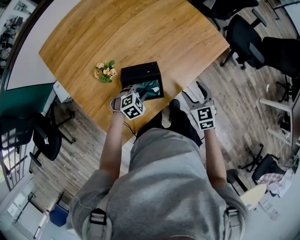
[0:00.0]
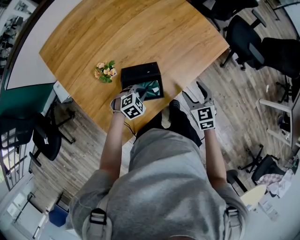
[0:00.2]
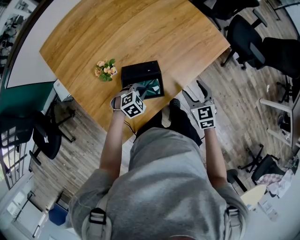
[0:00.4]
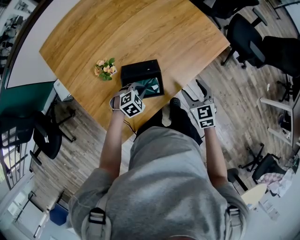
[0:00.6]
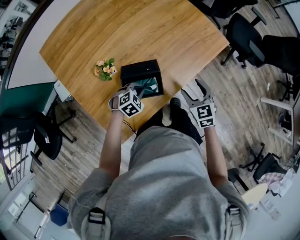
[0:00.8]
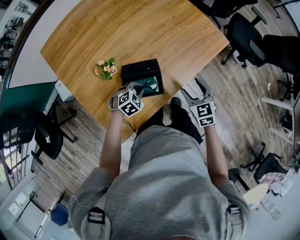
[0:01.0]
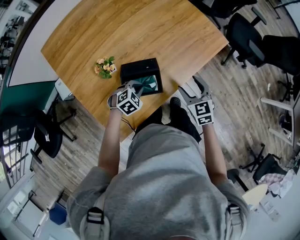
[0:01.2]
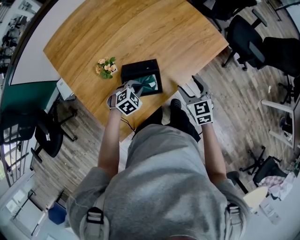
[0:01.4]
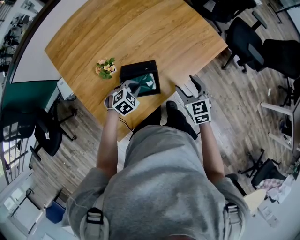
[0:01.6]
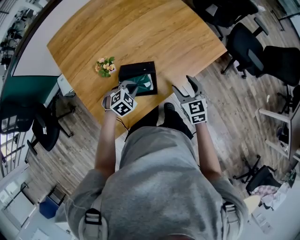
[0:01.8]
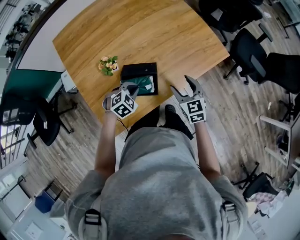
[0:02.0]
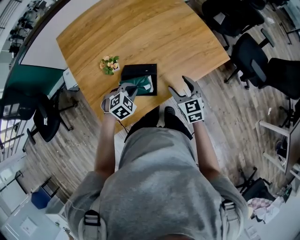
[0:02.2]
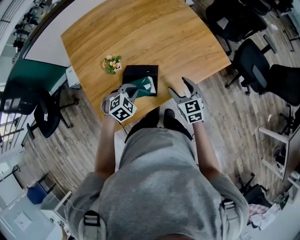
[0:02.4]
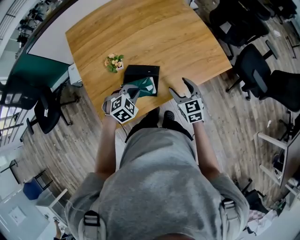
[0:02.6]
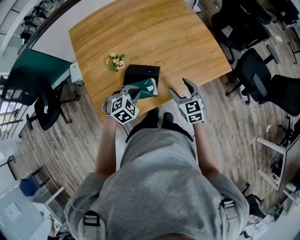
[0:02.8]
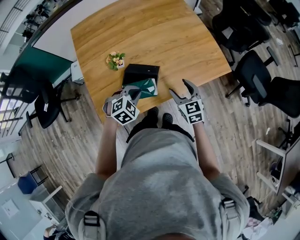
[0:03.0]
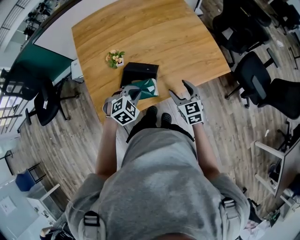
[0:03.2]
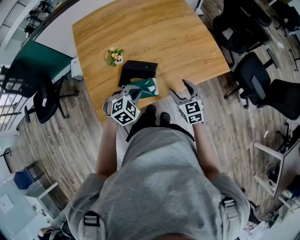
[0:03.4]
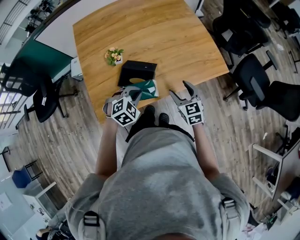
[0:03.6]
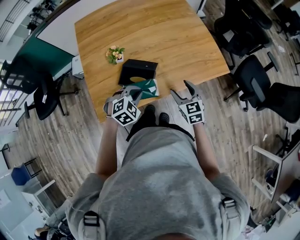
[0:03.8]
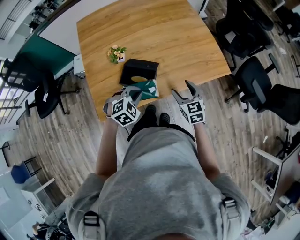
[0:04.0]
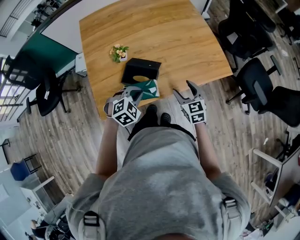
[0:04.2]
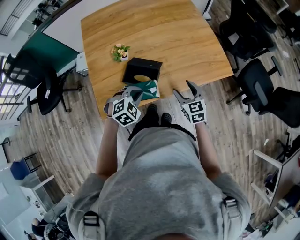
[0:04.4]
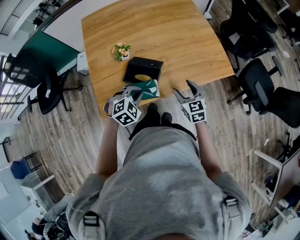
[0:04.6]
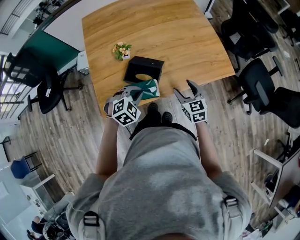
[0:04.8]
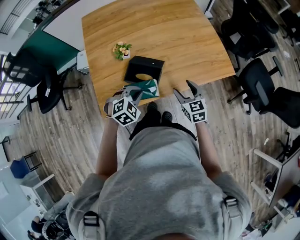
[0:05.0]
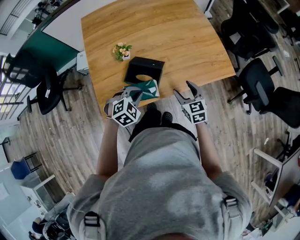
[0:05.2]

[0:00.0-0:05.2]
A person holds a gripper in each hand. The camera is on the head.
0.0 to 1.8 s: The left gripper heads upward, covering about 5 cm.
1.8 to 3.4 s: The left gripper moves upward, backward and to the right, about 10 cm.
3.4 to 5.2 s: The grippers make only small movements.

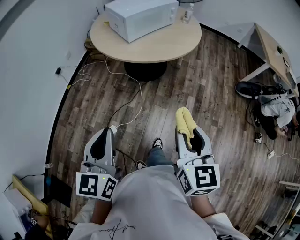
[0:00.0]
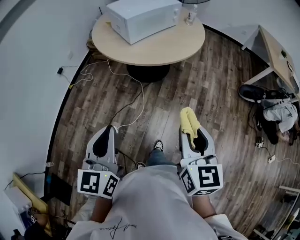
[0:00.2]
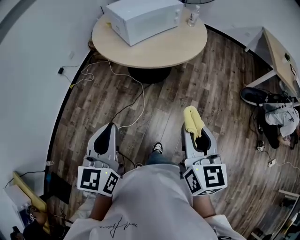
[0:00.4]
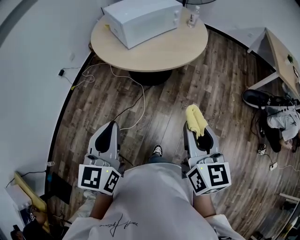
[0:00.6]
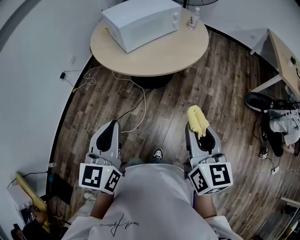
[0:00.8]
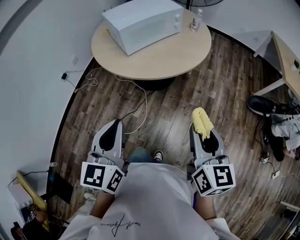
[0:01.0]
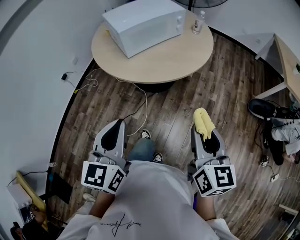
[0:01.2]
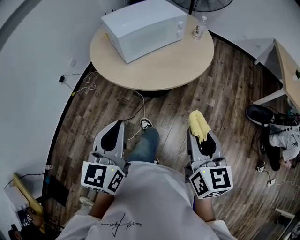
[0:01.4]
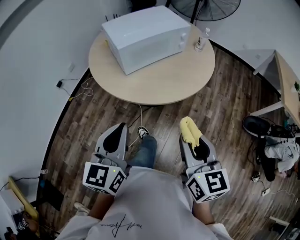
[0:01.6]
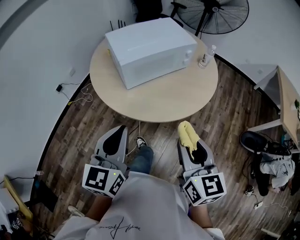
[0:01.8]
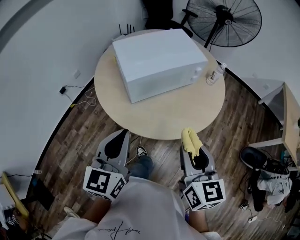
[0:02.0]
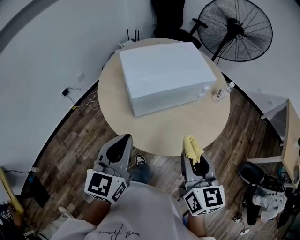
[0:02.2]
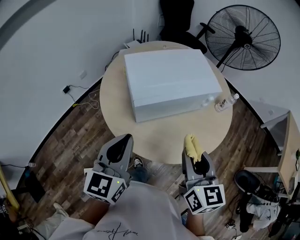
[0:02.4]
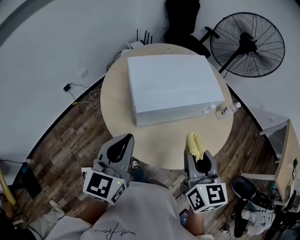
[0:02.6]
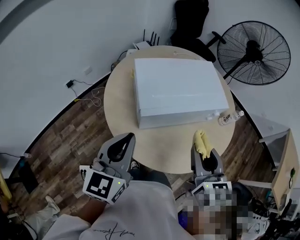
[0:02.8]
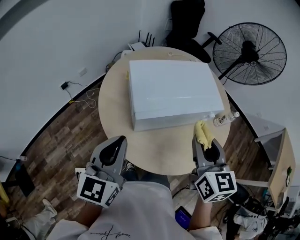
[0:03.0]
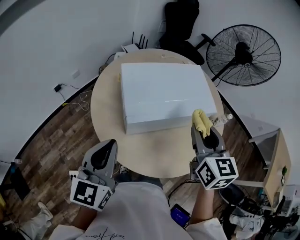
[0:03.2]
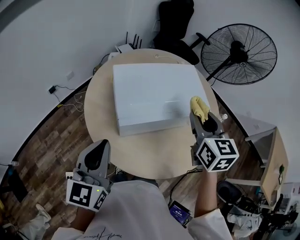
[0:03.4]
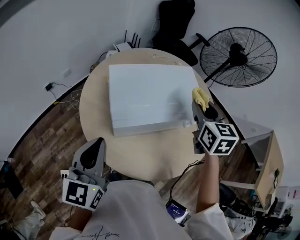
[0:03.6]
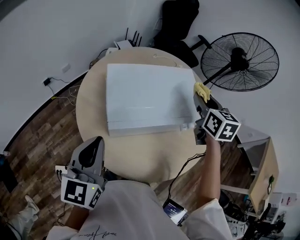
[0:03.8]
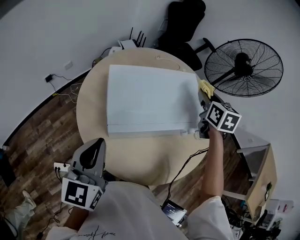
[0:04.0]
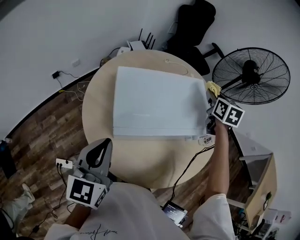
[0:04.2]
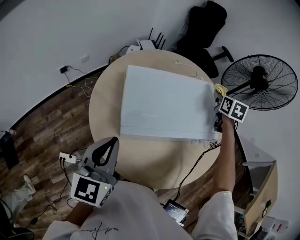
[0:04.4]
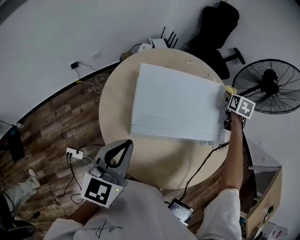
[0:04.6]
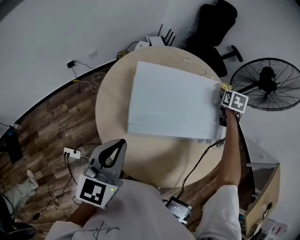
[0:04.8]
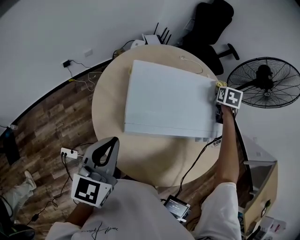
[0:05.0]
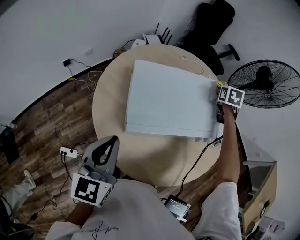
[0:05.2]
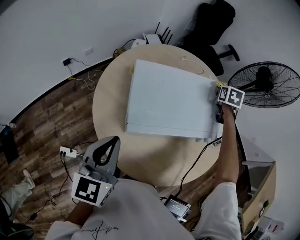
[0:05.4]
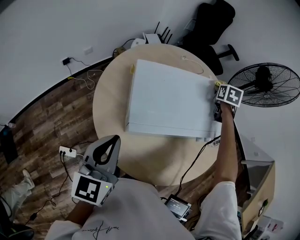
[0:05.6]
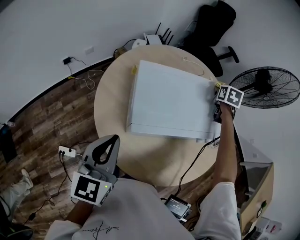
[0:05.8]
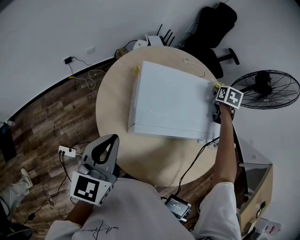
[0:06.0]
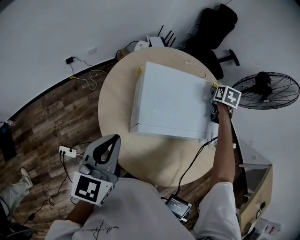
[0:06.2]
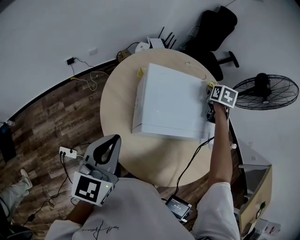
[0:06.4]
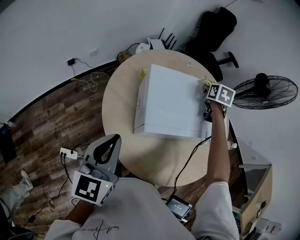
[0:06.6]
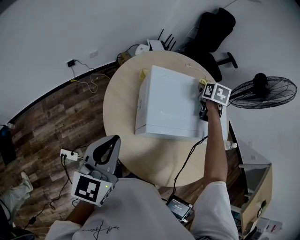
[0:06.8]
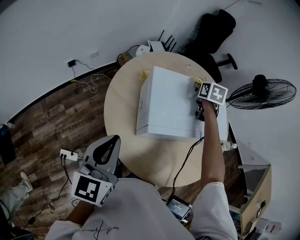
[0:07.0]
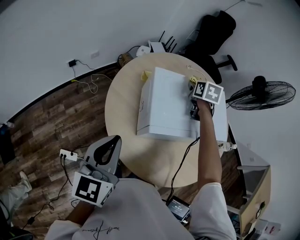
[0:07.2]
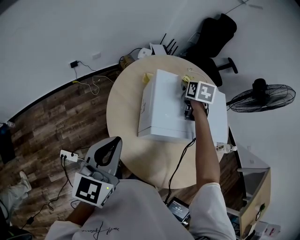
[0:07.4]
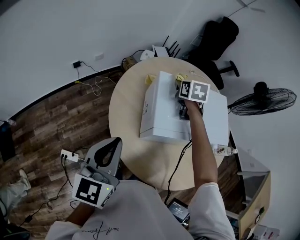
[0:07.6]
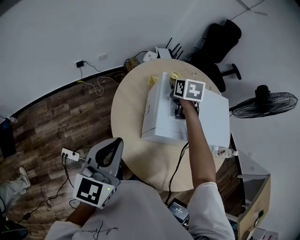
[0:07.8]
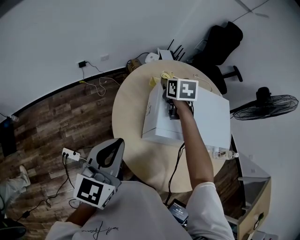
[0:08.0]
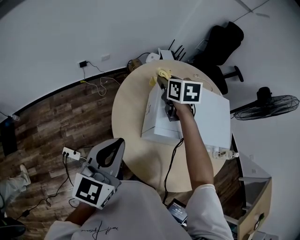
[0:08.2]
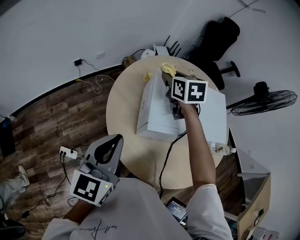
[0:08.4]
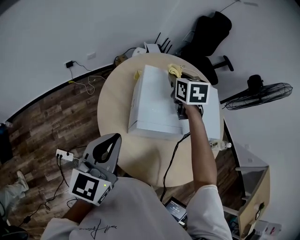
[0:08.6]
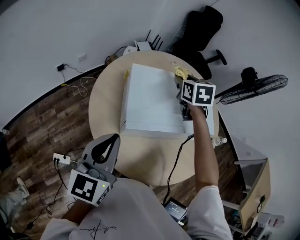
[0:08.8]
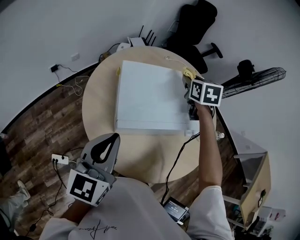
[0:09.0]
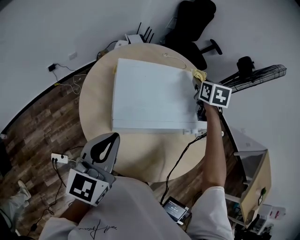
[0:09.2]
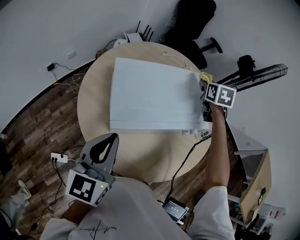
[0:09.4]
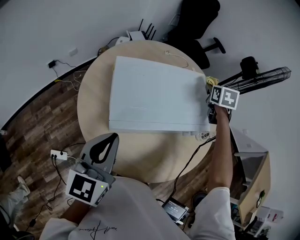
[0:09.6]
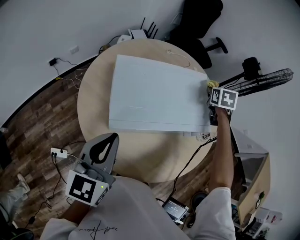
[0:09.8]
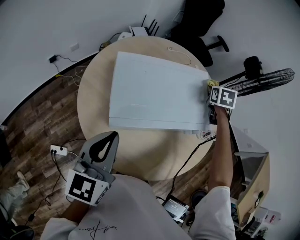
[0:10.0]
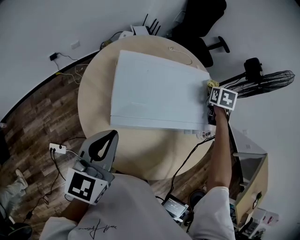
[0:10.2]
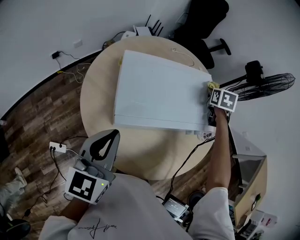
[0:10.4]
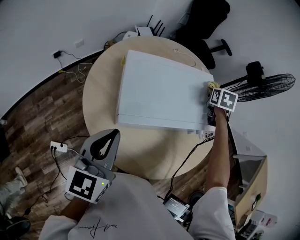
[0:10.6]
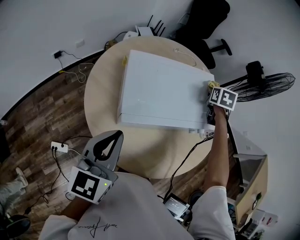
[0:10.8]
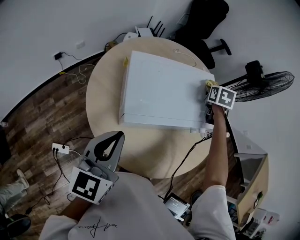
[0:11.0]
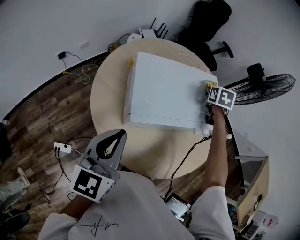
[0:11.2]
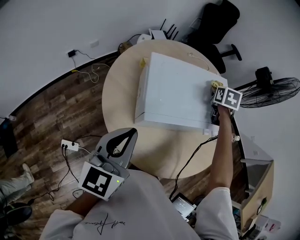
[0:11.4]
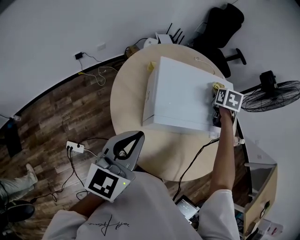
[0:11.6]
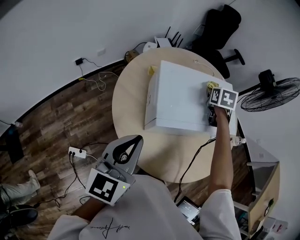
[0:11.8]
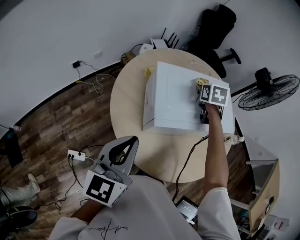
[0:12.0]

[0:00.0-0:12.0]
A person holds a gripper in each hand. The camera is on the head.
0.0 to 1.6 s: The left gripper travels forward and to the right by some 30 cm, while the right gripper shifts approximately 30 cm forward.
1.6 to 3.0 s: Both grippers move forward, some 35 cm.
3.0 to 4.4 s: The right gripper travels forward by about 40 cm, and rotates approximately 20 degrees. The left gripper moves forward, approximately 5 cm.
4.4 to 6.0 s: Both grippers travel together to the left, approximately 5 cm.
6.0 to 7.6 s: The right gripper is displaced to the left by roughly 30 cm, while the left gripper goes some 5 cm to the left.
7.6 to 9.0 s: The two grippers go about 15 cm to the right.
9.0 to 10.4 s: The right gripper moves to the right and downward, some 15 cm.
10.4 to 12.0 s: The left gripper shifts roughly 10 cm to the left and backward. Meanwhile the right gripper moves to the left and backward, about 20 cm.

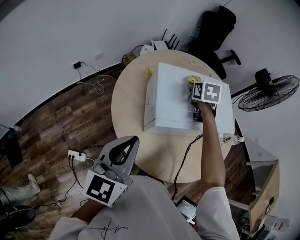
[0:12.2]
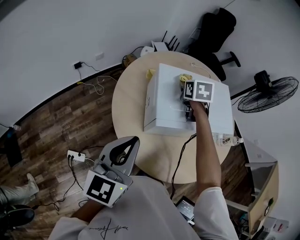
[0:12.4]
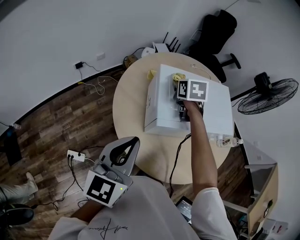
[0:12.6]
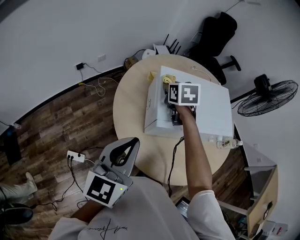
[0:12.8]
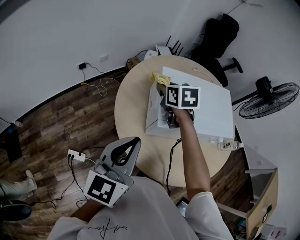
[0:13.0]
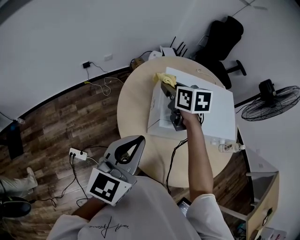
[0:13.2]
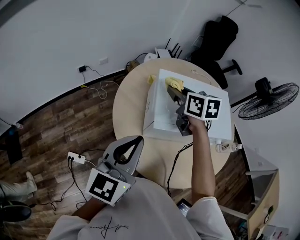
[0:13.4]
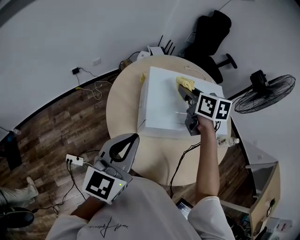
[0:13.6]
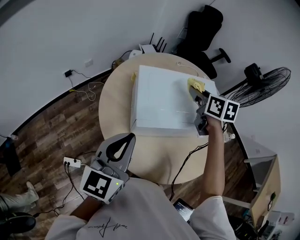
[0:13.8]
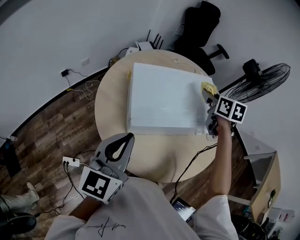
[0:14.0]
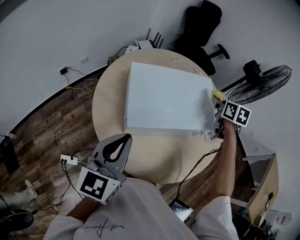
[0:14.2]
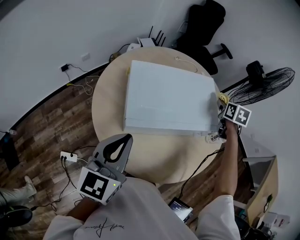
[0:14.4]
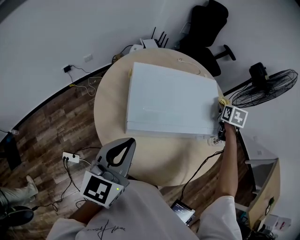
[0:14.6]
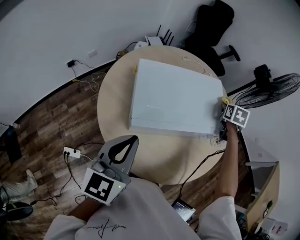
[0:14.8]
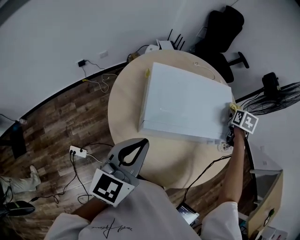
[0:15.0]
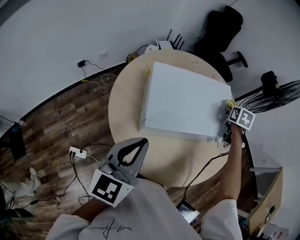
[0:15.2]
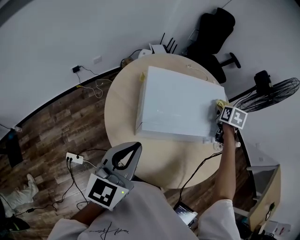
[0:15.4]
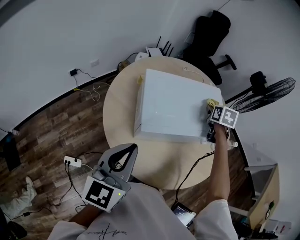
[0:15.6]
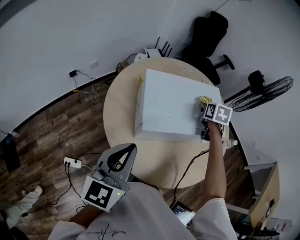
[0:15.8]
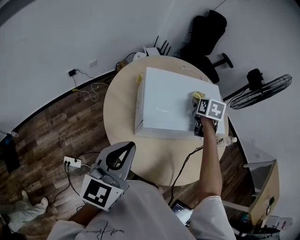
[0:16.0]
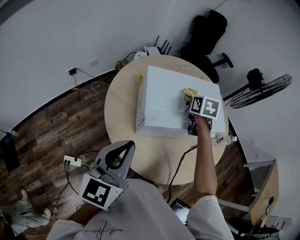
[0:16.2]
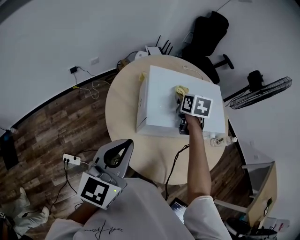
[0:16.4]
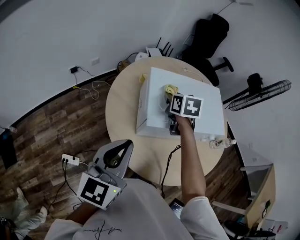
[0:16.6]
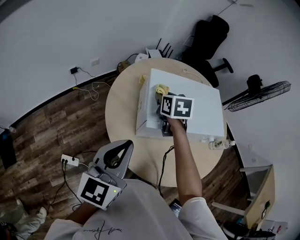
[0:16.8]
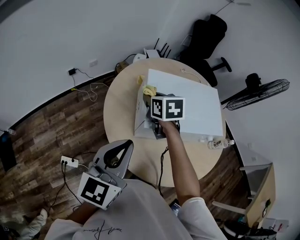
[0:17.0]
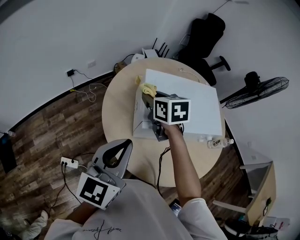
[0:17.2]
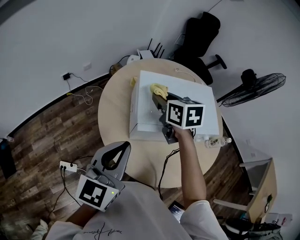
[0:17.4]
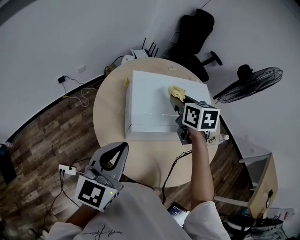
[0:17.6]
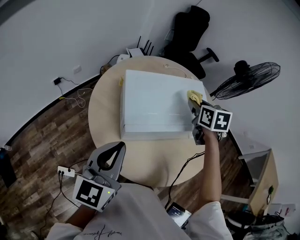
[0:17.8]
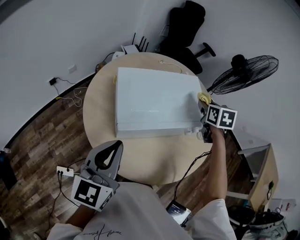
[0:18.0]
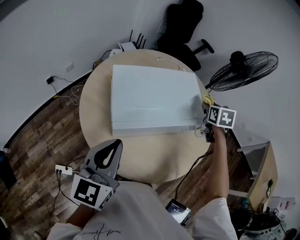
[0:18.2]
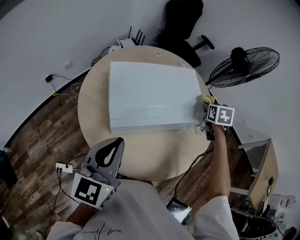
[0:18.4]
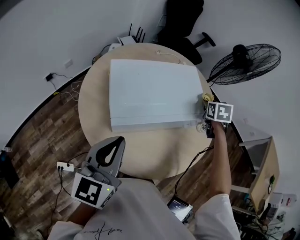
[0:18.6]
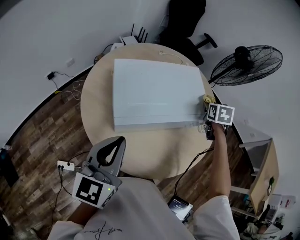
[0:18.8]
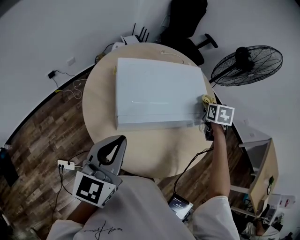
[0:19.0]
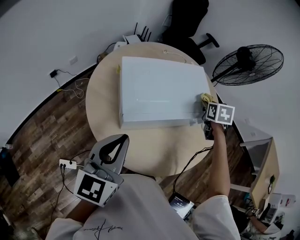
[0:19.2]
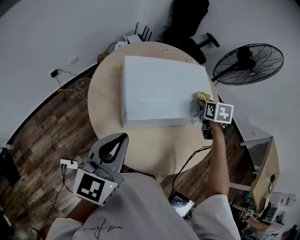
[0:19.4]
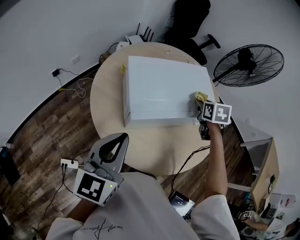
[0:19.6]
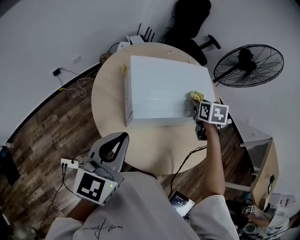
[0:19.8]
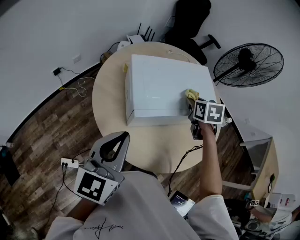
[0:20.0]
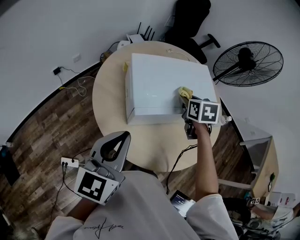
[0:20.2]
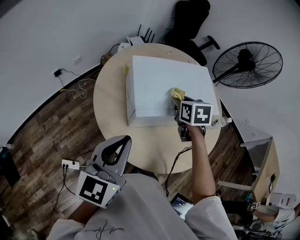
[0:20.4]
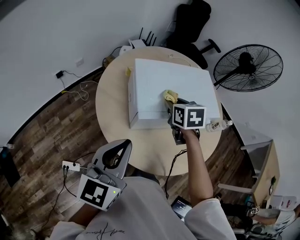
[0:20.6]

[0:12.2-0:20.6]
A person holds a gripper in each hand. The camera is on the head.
12.2 to 13.6 s: The right gripper travels upward and backward by some 10 cm, reaches approximately 15 cm to the left, then returns, and turns by roughly 30 degrees.
13.6 to 15.0 s: The left gripper heads to the right, covering roughly 5 cm. Meanwhile the right gripper moves to the right, some 30 cm, and rotates roughly 40 degrees.
15.0 to 16.4 s: The left gripper goes approximately 10 cm backward and to the left; the right gripper is displaced to the left by approximately 25 cm, and changes its angle by roughly 20 degrees.
16.4 to 17.8 s: The right gripper heads to the right and upward, covering approximately 15 cm; the left gripper shifts by about 5 cm.
17.8 to 19.2 s: The right gripper moves to the right and downward, about 15 cm.
19.2 to 20.6 s: The right gripper shifts approximately 25 cm to the left and backward; the left gripper is displaced backward by roughly 5 cm.
